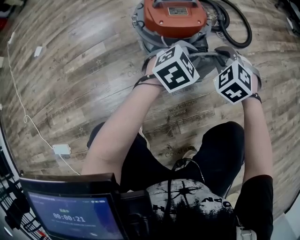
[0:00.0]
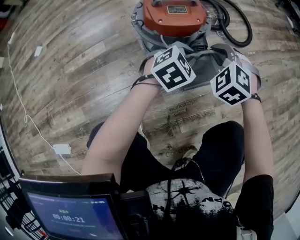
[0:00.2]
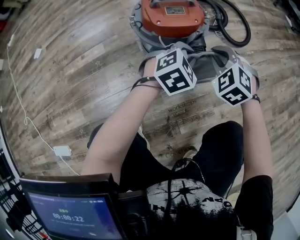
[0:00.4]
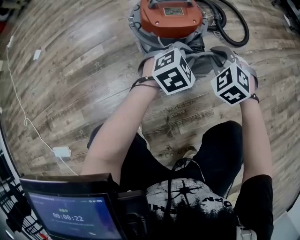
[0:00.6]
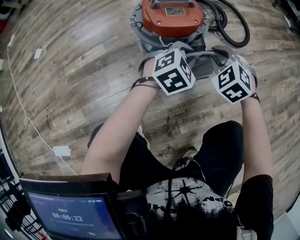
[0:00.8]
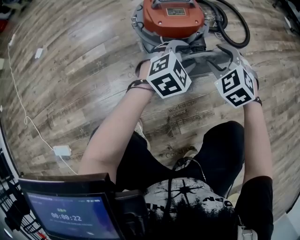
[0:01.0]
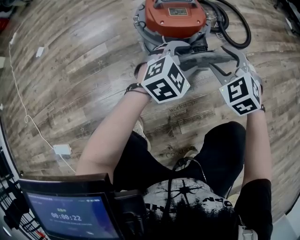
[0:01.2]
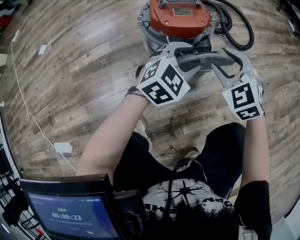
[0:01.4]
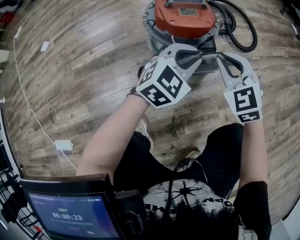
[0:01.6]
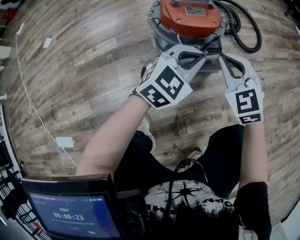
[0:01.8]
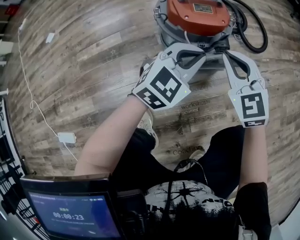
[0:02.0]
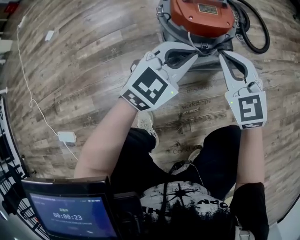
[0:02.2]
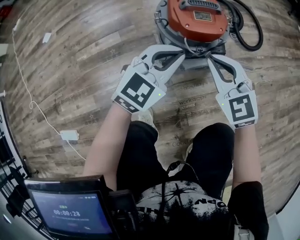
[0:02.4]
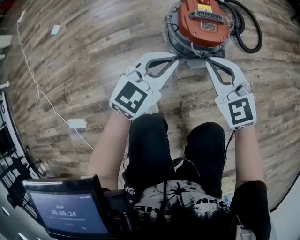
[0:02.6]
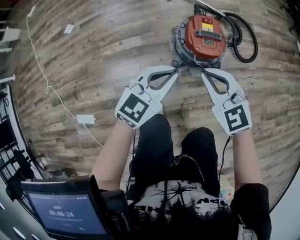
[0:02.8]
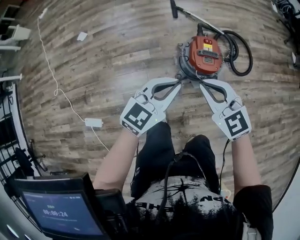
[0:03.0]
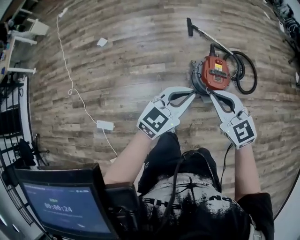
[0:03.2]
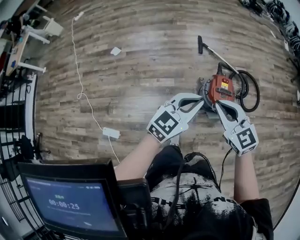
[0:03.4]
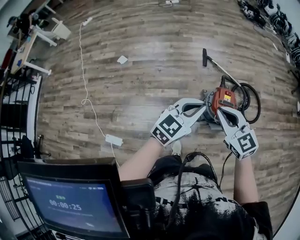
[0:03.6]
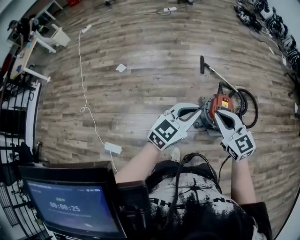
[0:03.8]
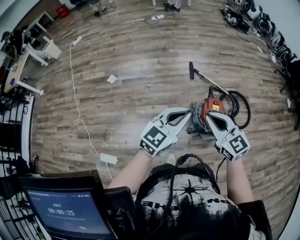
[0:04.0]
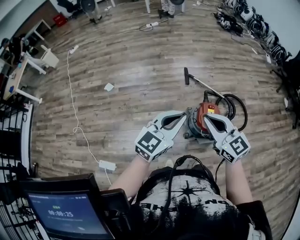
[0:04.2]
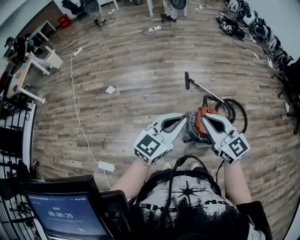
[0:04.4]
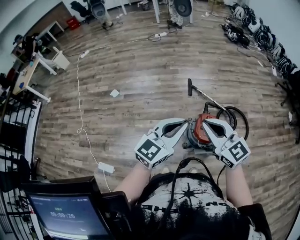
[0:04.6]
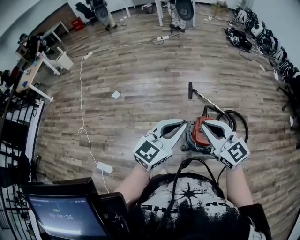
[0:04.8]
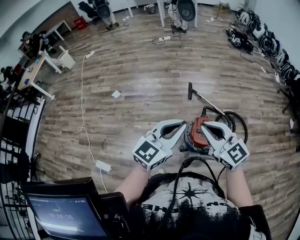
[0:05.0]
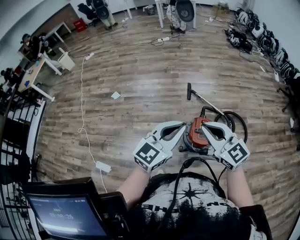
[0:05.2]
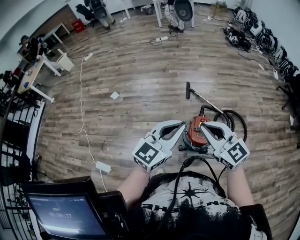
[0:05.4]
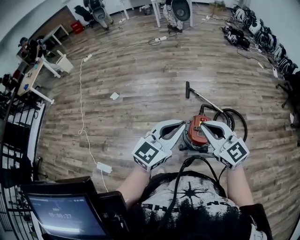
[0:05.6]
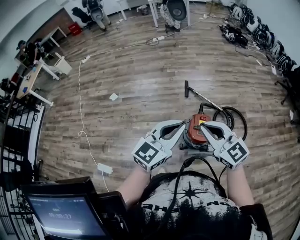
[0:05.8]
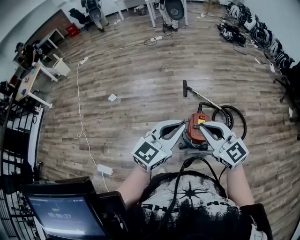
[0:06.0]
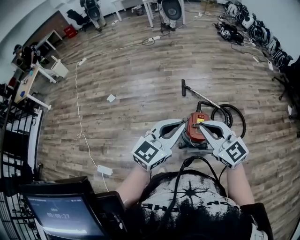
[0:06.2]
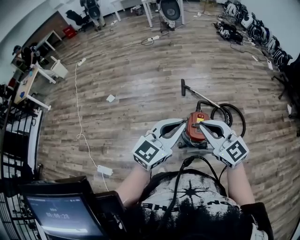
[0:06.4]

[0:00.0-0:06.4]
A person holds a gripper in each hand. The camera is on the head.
0:00.0 to 0:01.6: The two grippers go roughly 5 cm upward. The left gripper opens and closes again. Meanwhile the right gripper swivels roughly 30 degrees, and opens, then closes again.
0:01.6 to 0:03.2: Both grippers move upward and to the left, some 50 cm. The right gripper swivels some 30 degrees. Meanwhile the left gripper turns by about 30 degrees.
0:03.2 to 0:04.8: The two grippers go approximately 15 cm upward.
0:04.8 to 0:06.4: Both grippers travel together to the right, approximately 5 cm.

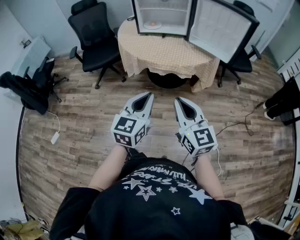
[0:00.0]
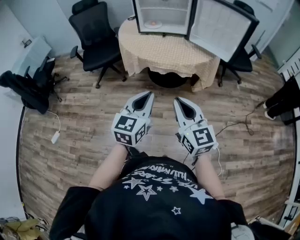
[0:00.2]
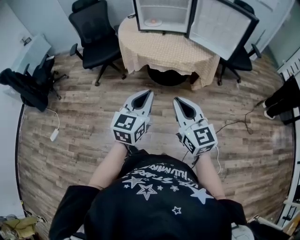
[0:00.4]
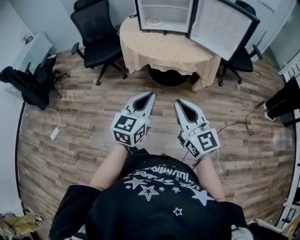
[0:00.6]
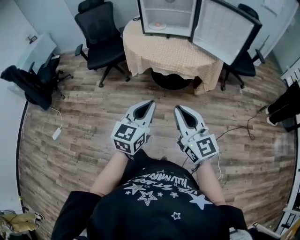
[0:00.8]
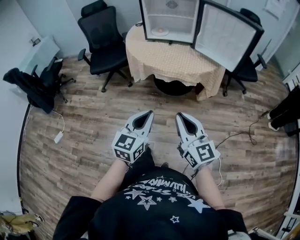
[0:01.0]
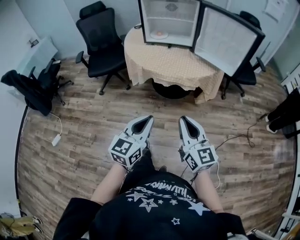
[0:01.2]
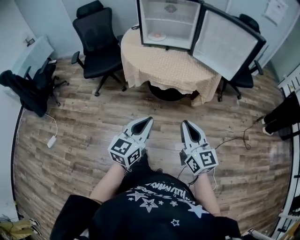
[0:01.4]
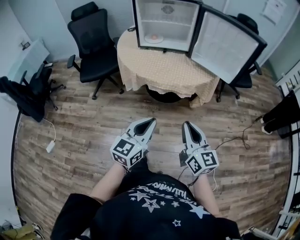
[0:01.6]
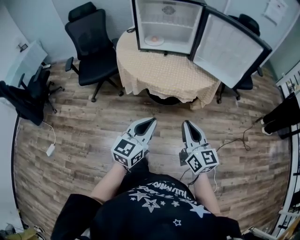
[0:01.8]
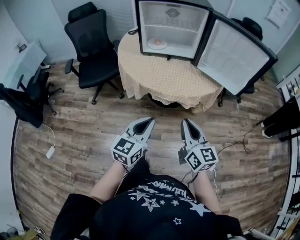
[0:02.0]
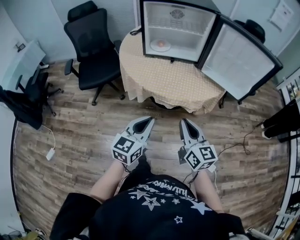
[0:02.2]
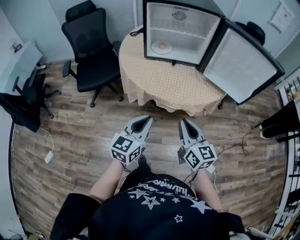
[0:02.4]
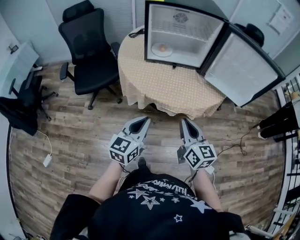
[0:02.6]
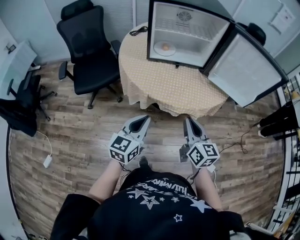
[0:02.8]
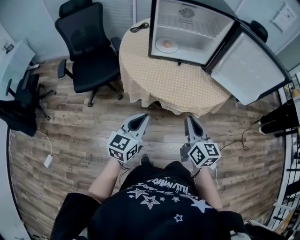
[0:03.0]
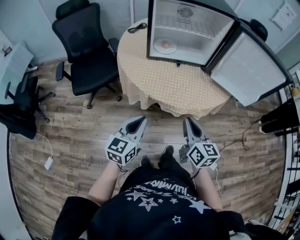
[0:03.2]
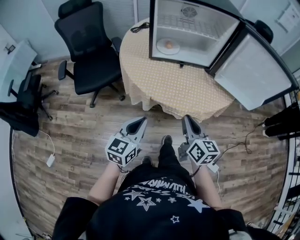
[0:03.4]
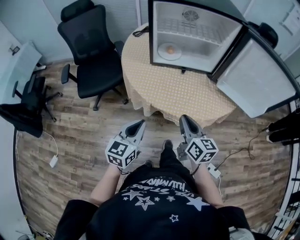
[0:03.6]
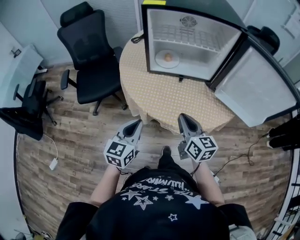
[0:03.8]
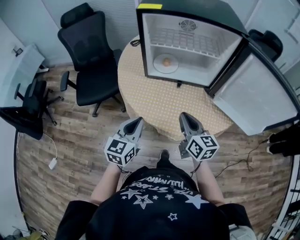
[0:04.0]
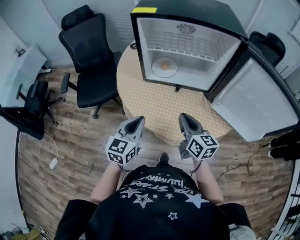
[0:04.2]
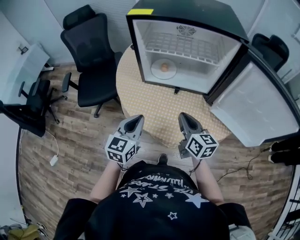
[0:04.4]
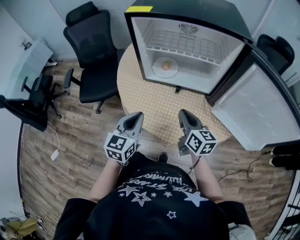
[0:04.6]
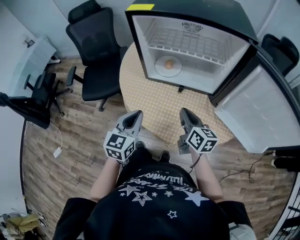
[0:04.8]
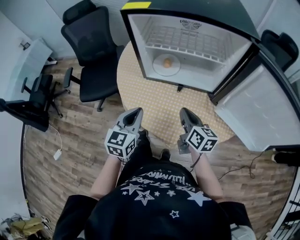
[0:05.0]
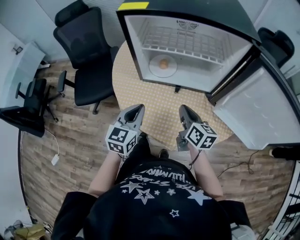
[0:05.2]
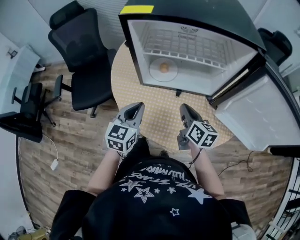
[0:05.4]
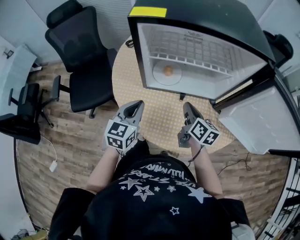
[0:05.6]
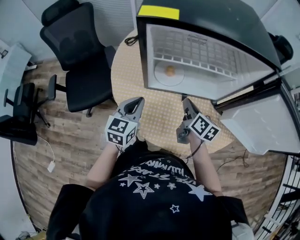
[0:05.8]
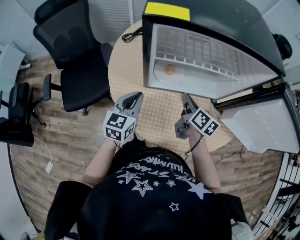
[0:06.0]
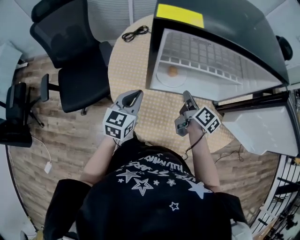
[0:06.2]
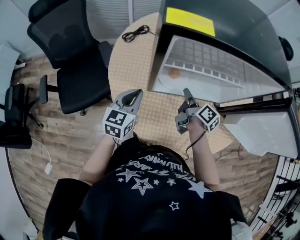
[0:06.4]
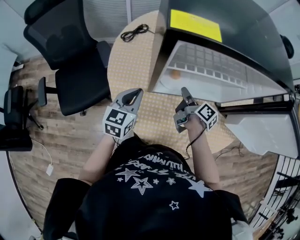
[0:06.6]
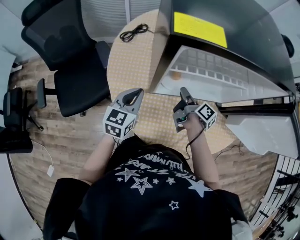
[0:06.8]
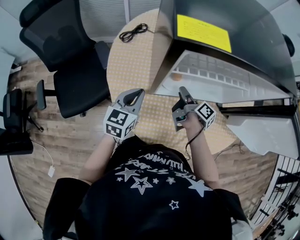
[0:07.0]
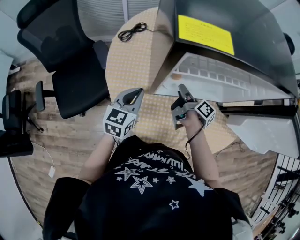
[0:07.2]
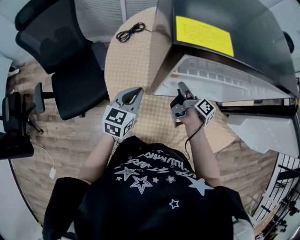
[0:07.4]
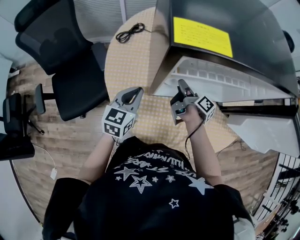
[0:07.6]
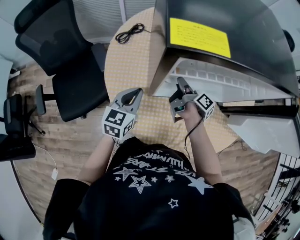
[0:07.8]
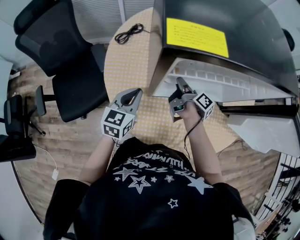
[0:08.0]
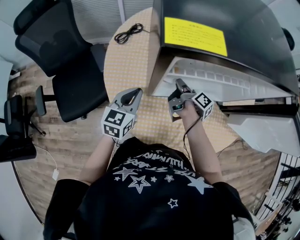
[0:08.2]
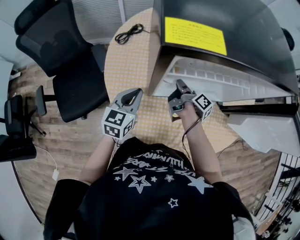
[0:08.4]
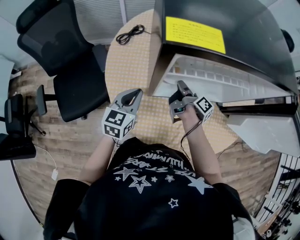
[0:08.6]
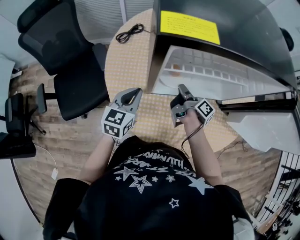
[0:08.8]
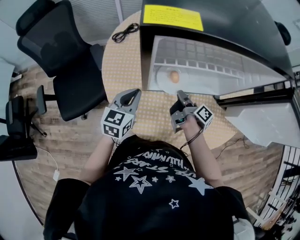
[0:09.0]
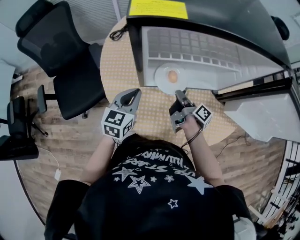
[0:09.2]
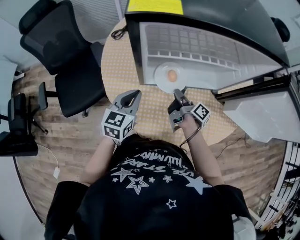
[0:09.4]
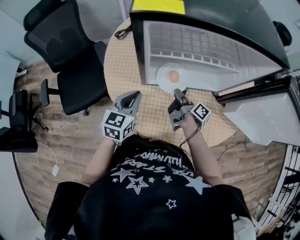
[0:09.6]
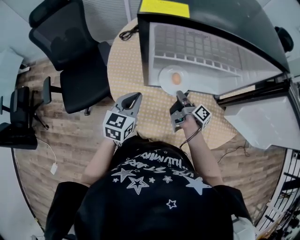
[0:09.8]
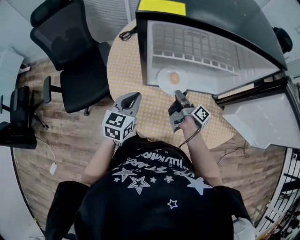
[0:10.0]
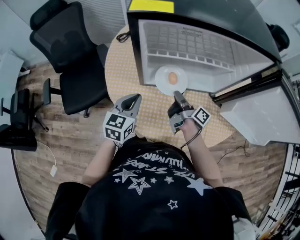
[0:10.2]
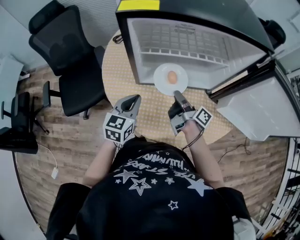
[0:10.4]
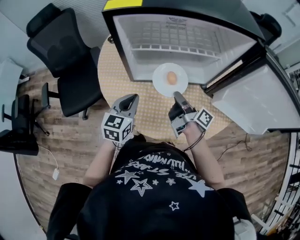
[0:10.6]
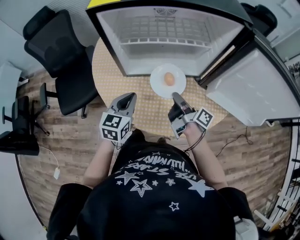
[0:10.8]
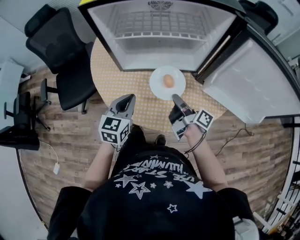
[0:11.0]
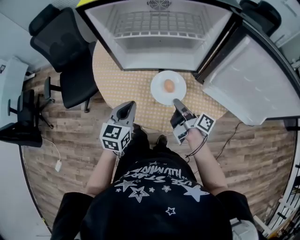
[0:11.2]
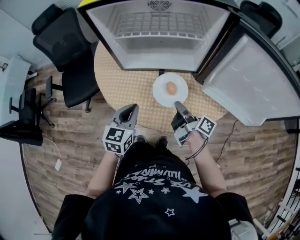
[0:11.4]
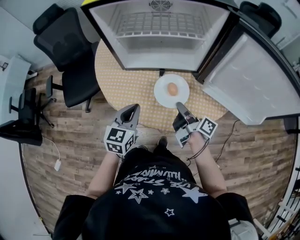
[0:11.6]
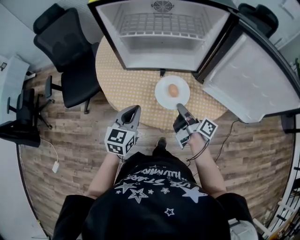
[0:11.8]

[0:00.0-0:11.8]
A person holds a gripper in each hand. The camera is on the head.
0:00.0 to 0:01.4: The right gripper moves about 5 cm.
0:01.4 to 0:03.0: The two grippers go some 30 cm forward and to the left.
0:03.0 to 0:04.4: The two grippers go roughly 20 cm forward.
0:04.4 to 0:06.0: The two grippers go roughly 20 cm forward. The right gripper swivels about 30 degrees.
0:06.0 to 0:07.4: The left gripper goes about 5 cm forward. Meanwhile the right gripper goes about 10 cm forward and downward, rolls clockwise, seen from behind, by roughly 40 degrees, and opens.
0:07.4 to 0:08.8: The right gripper closes.
0:08.8 to 0:10.4: The left gripper is displaced backward and to the right by some 10 cm. The right gripper heads backward and upward, covering some 10 cm.
0:10.4 to 0:11.8: Both grippers move backward and to the right, roughly 15 cm.

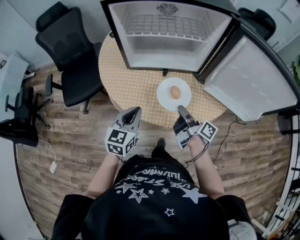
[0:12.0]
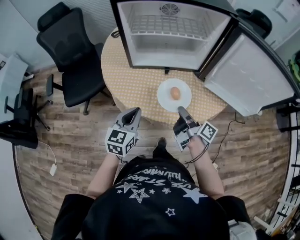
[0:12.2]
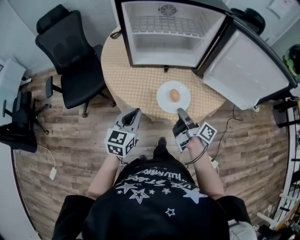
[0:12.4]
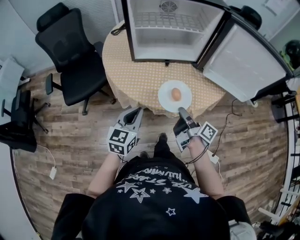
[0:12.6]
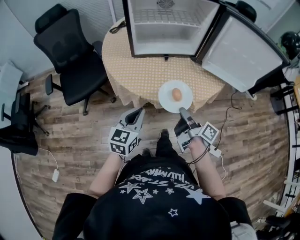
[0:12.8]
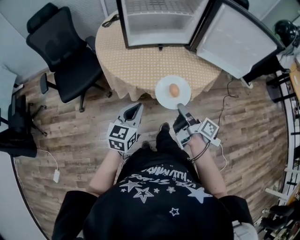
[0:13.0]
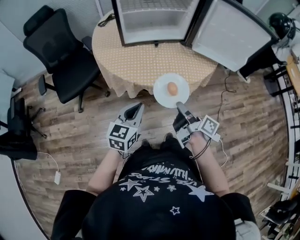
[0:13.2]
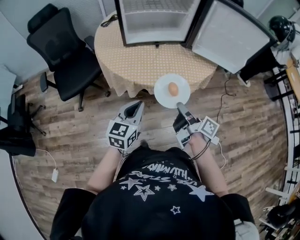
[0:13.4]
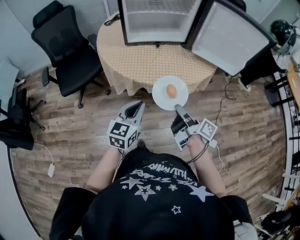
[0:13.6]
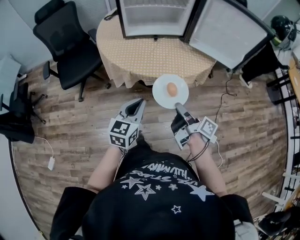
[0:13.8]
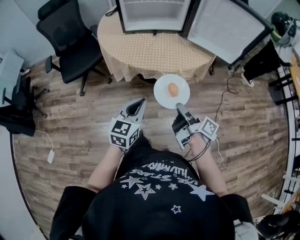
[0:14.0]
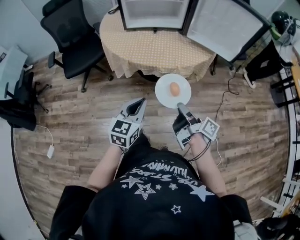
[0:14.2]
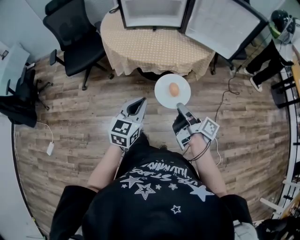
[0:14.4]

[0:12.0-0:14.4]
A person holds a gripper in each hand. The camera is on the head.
0:12.0 to 0:13.2: Both grippers travel together backward, roughly 20 cm.
0:13.2 to 0:14.4: Both grippers travel together backward and to the right, roughly 15 cm.

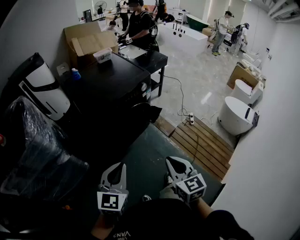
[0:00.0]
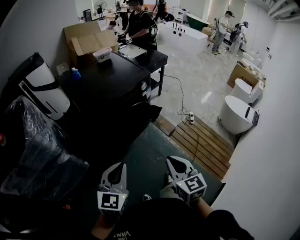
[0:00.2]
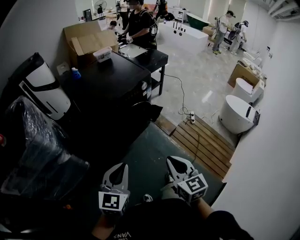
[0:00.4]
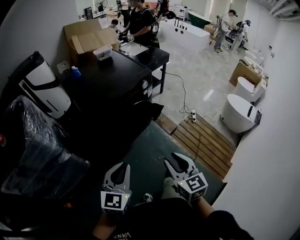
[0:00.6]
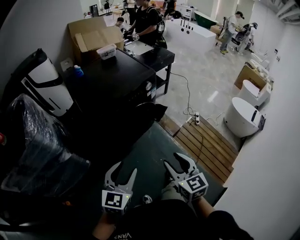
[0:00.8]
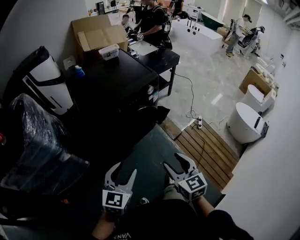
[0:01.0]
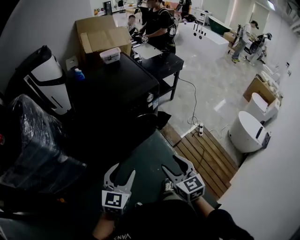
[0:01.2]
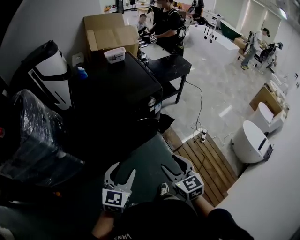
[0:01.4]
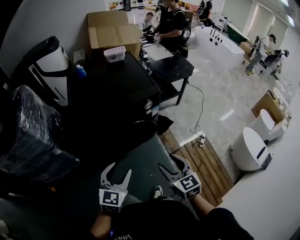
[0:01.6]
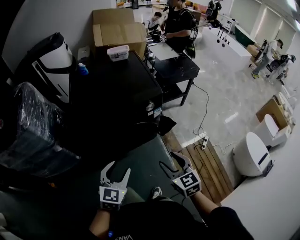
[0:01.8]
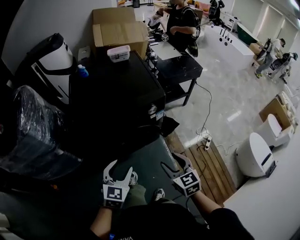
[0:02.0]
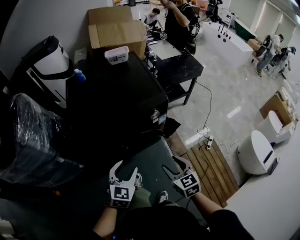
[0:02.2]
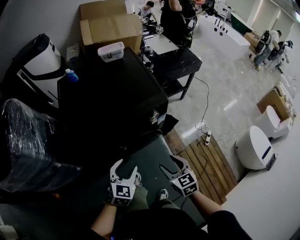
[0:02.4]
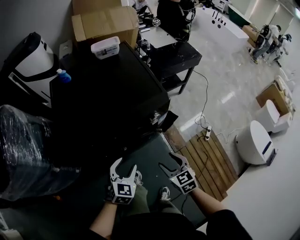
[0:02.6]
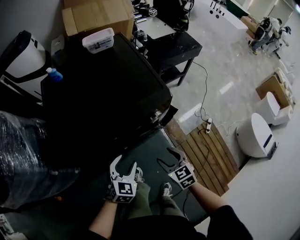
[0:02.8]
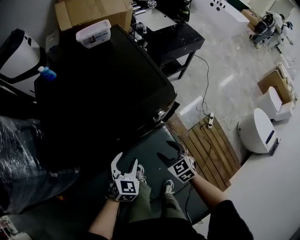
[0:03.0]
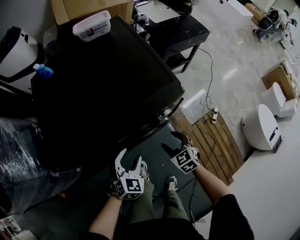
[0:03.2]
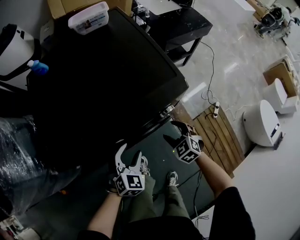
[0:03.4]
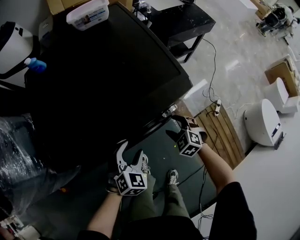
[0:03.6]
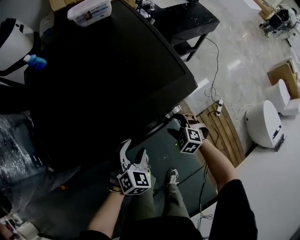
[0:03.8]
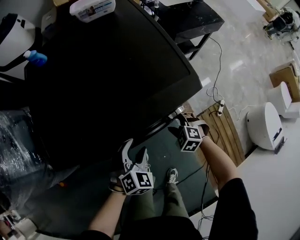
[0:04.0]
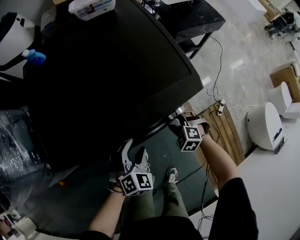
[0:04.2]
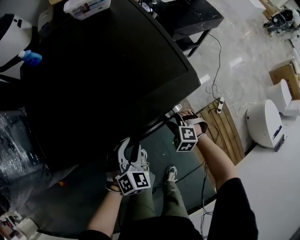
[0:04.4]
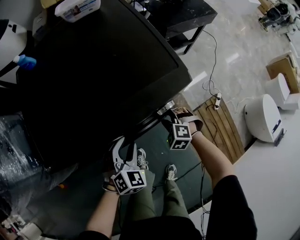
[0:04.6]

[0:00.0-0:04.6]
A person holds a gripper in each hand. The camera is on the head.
0:00.0 to 0:01.6: The grippers both shift forward and to the right by approximately 25 cm. The right gripper swivels approximately 20 degrees, and opens its fingers. Meanwhile the left gripper opens up.
0:01.6 to 0:03.0: The two grippers go about 30 cm forward and downward. The left gripper rotates some 20 degrees.
0:03.0 to 0:04.6: The left gripper changes place by about 5 cm. Meanwhile the right gripper travels downward and forward by roughly 15 cm, twists about 40 degrees counterclockwise, seen from behind, and closes its fingers.
